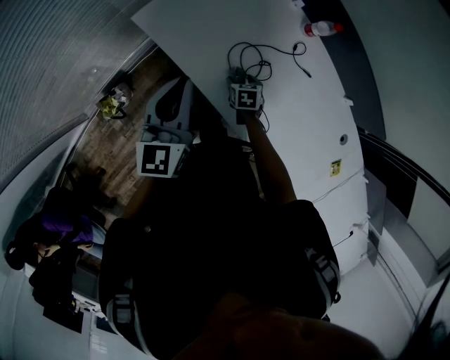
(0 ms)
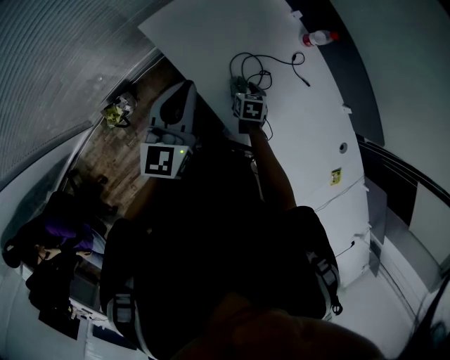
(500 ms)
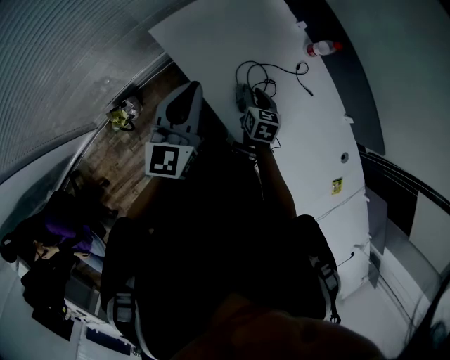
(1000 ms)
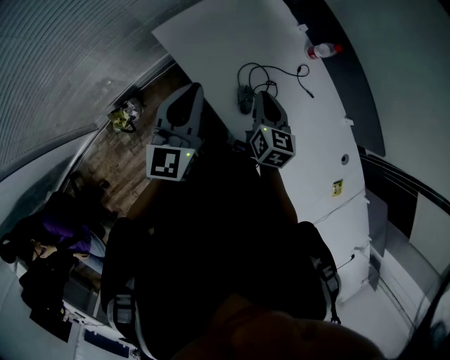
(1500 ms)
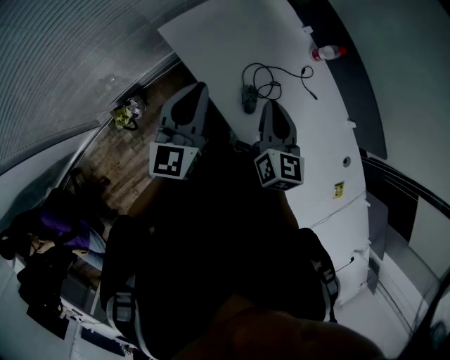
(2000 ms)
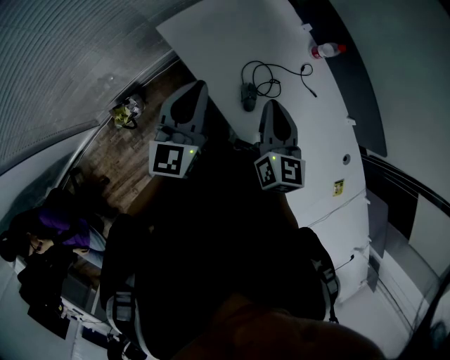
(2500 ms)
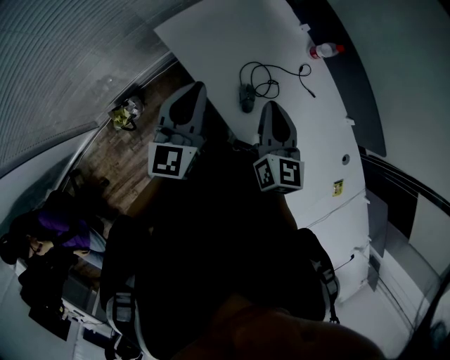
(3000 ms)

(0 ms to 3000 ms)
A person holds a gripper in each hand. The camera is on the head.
0 ms - 1500 ms: The right gripper heads upward, covering about 25 cm, points its fingers some 40 degrees further upward, and closes; the left gripper moves about 5 cm.
1500 ms - 3000 ms: The right gripper is displaced upward by about 10 cm.

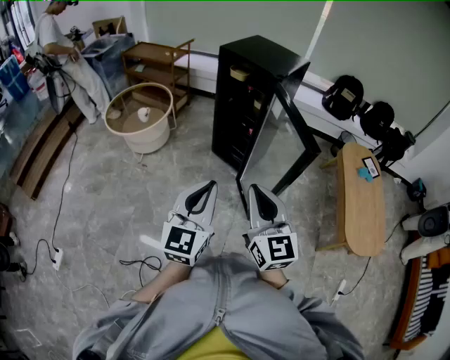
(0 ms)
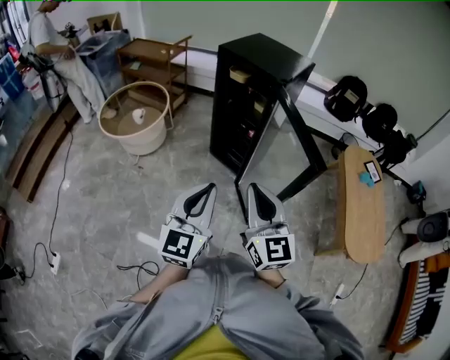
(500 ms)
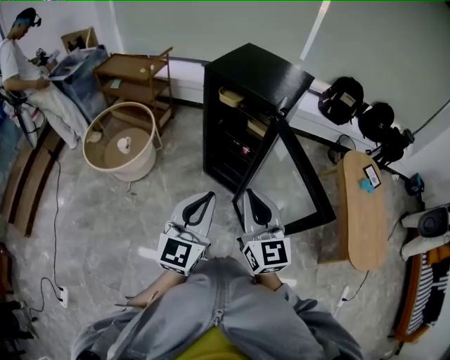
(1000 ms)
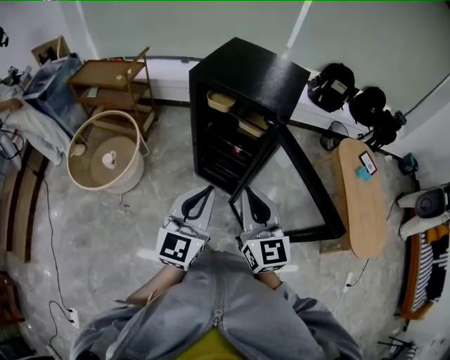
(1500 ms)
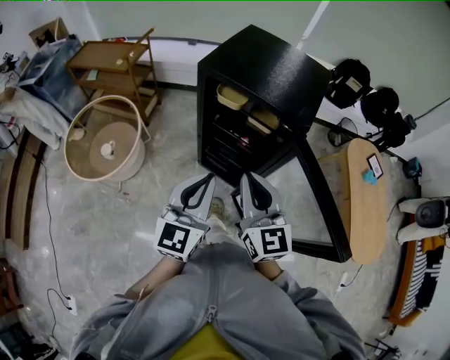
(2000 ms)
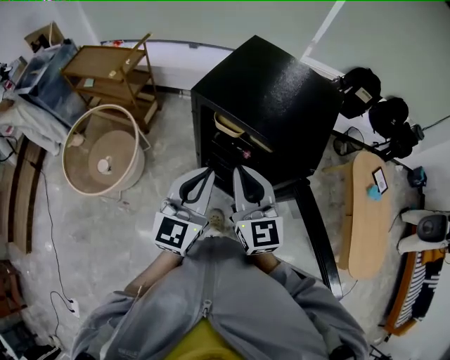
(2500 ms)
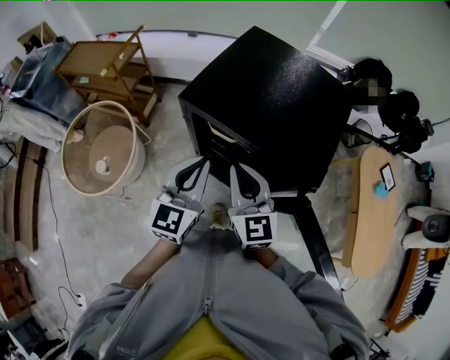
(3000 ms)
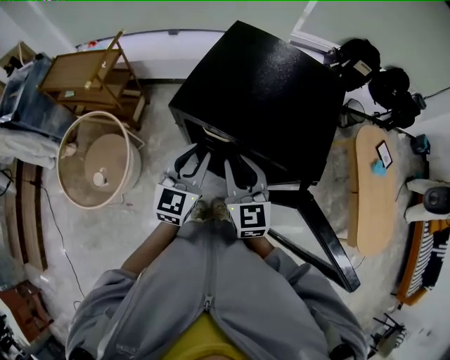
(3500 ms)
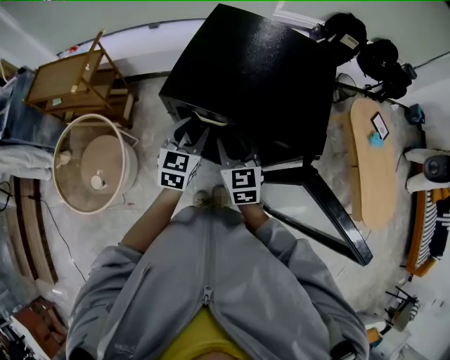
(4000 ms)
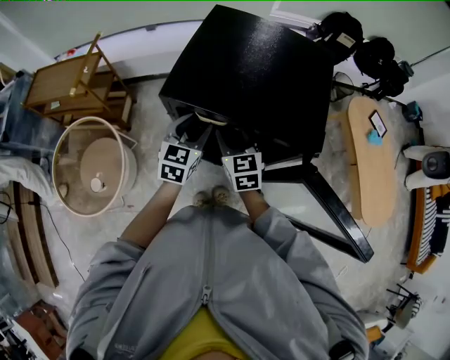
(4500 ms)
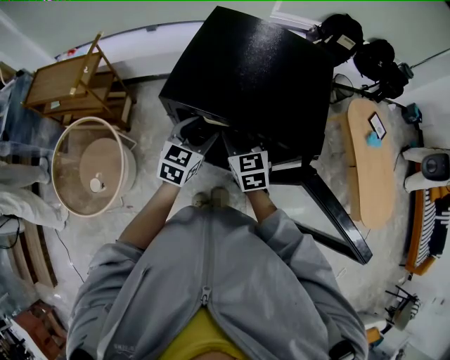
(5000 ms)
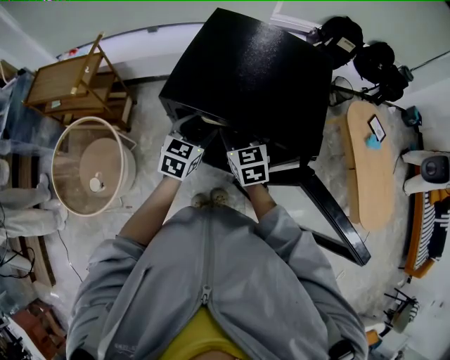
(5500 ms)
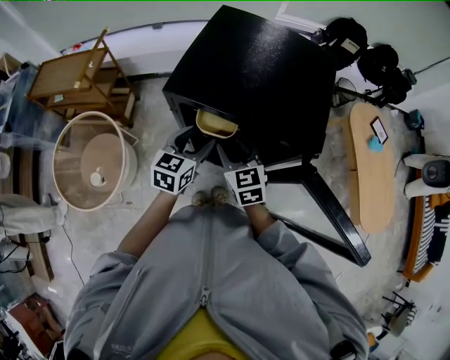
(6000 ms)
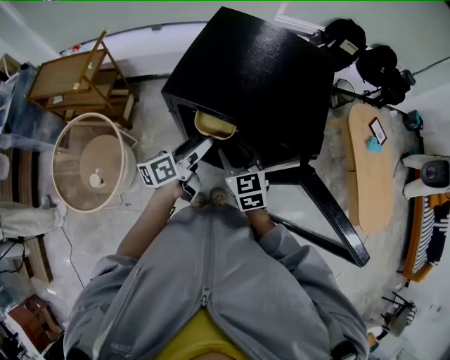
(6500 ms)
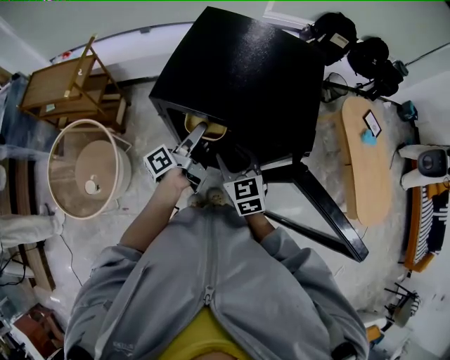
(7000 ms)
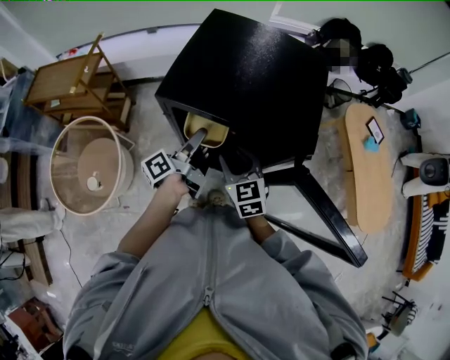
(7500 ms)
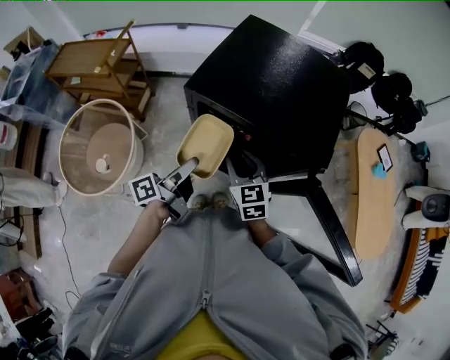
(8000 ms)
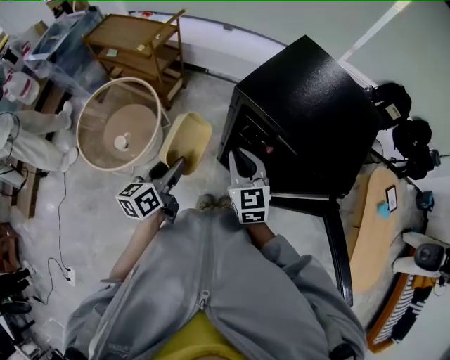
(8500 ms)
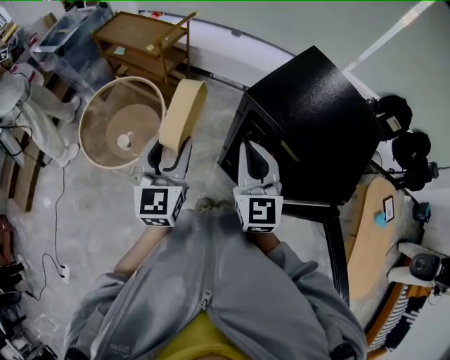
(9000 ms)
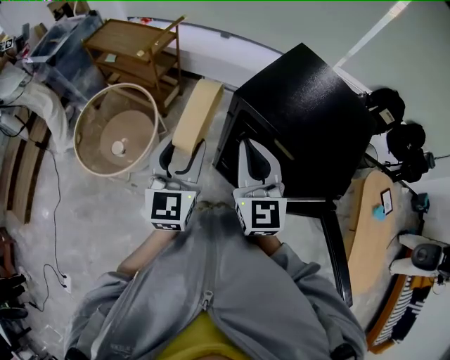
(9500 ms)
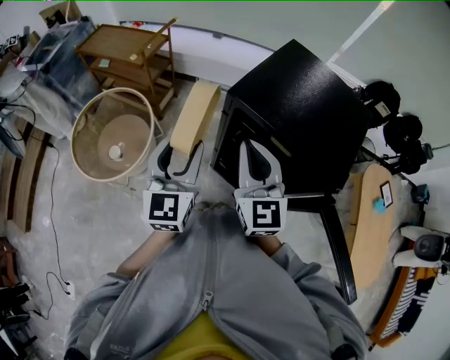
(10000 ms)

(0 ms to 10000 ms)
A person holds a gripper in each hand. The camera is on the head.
0 ms - 2000 ms: Both grippers are carried forward, approximately 40 cm.
2000 ms - 4000 ms: Both grippers travel together forward and downward, approximately 30 cm. The right gripper changes its angle by some 20 degrees, and opens its fingers, while the left gripper changes its angle by approximately 20 degrees, and opens.
4000 ms - 6000 ms: The grippers move only a little.
6000 ms - 8000 ms: The left gripper moves backward, some 10 cm, and rotates around the line of its fingers by approximately 70 degrees, counterclockwise from behind.
8000 ms - 10000 ms: Both grippers move upward, some 15 cm. The right gripper turns by some 30 degrees, and closes its fingers, while the left gripper rotates around the line of its fingers by some 80 degrees, clockwise from behind.

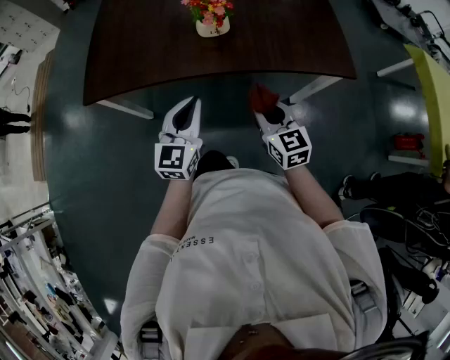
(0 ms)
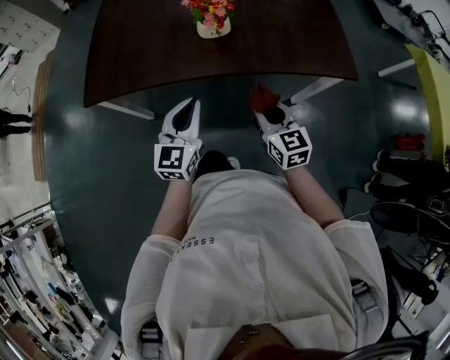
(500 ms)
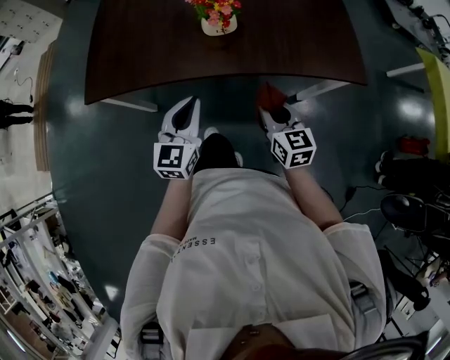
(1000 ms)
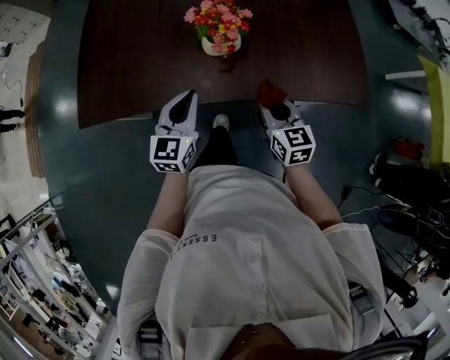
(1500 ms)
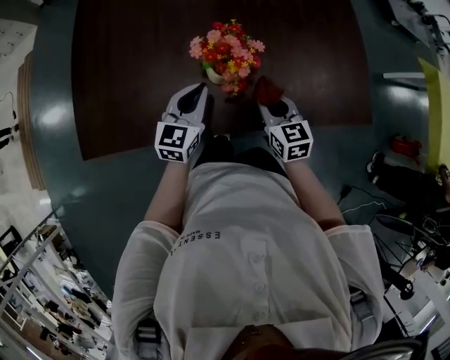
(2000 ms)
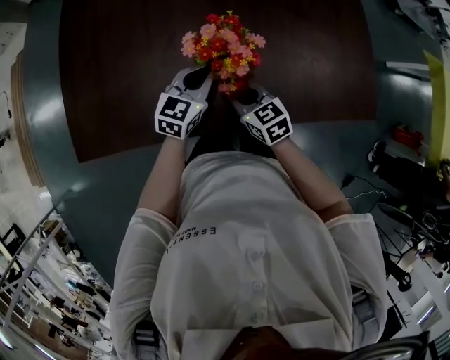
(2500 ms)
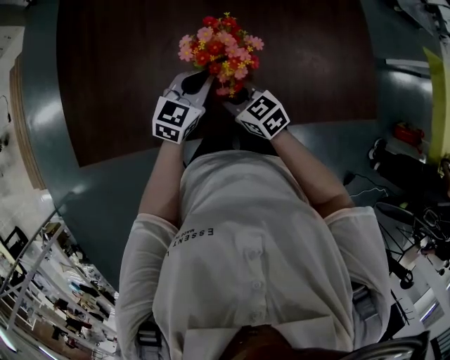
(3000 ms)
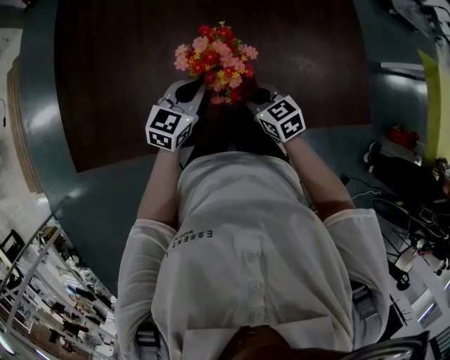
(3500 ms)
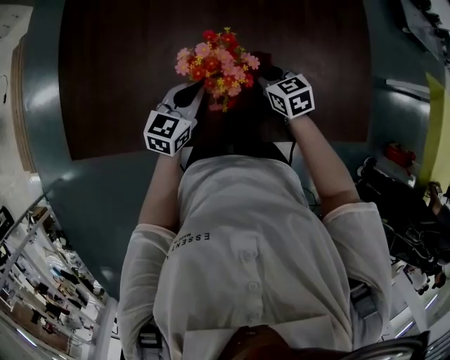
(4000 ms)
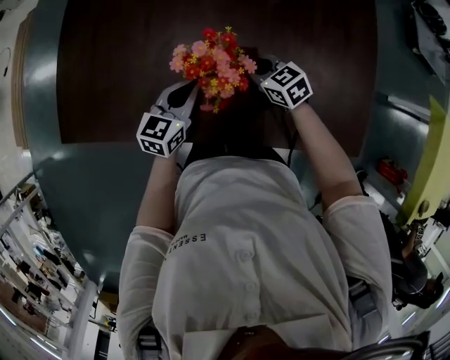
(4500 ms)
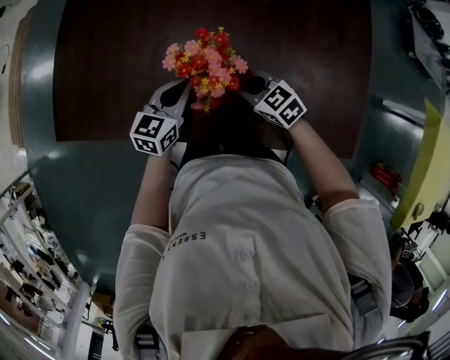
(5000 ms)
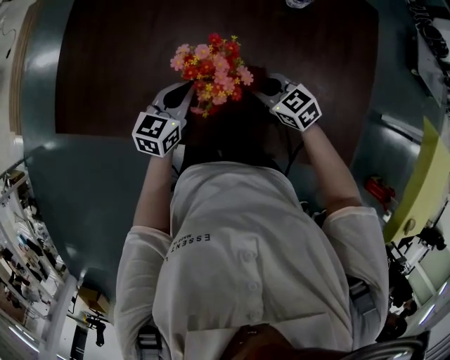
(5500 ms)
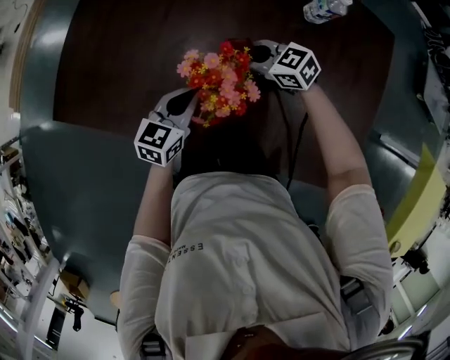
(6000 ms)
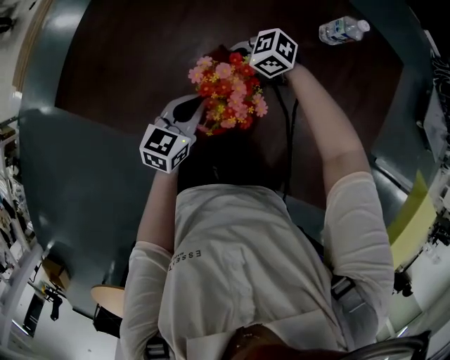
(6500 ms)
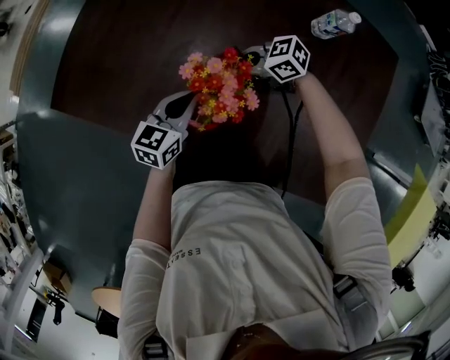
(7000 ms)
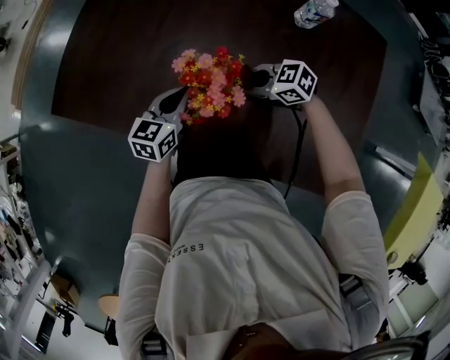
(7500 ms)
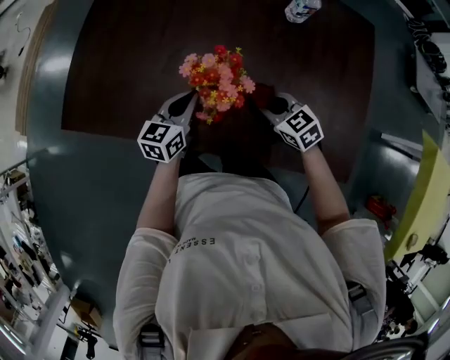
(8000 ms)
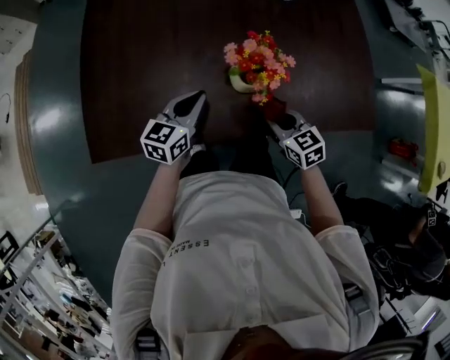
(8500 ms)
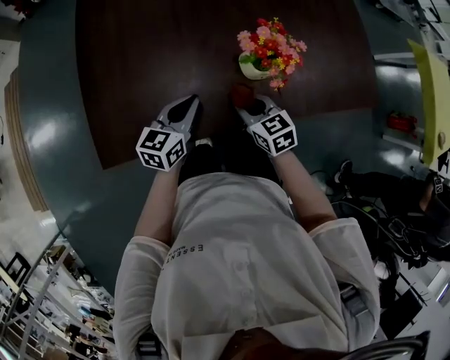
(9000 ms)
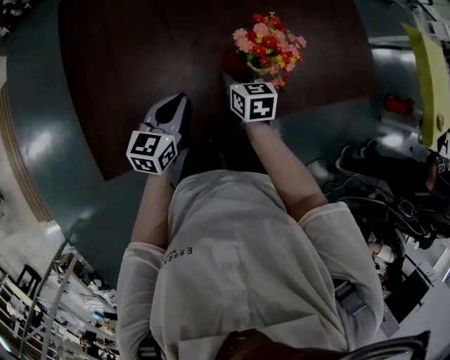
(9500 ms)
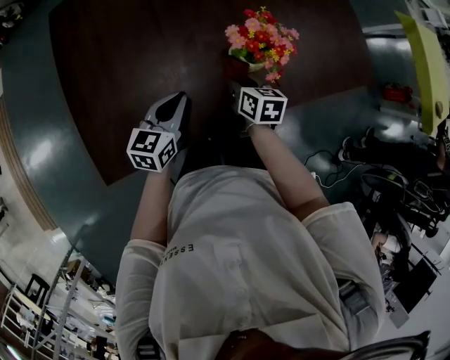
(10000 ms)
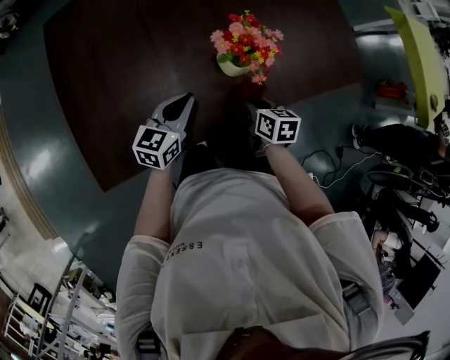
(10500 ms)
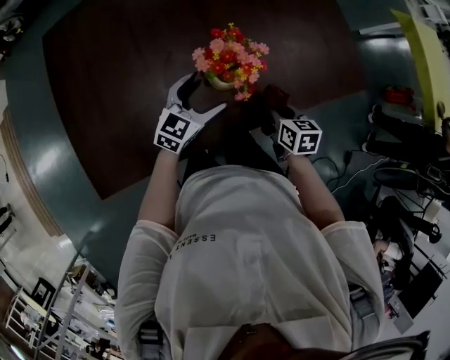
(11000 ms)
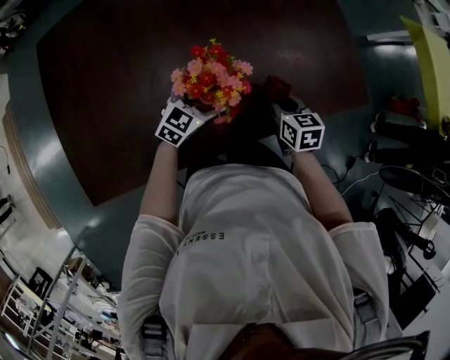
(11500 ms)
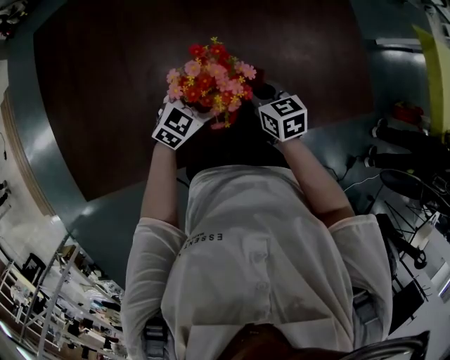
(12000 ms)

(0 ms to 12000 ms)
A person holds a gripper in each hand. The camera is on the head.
0 ms - 2000 ms: The grippers both shift forward by about 25 cm.
2000 ms - 4000 ms: The left gripper moves approximately 5 cm. Meanwhile the right gripper heads forward and downward, covering approximately 15 cm, reaches some 10 cm to the left, then returns, and changes its angle by about 20 degrees.
4000 ms - 6000 ms: The right gripper ends up about 10 cm from where it was, and swivels some 50 degrees.
6000 ms - 8000 ms: The right gripper changes place by approximately 15 cm, and turns by about 20 degrees.
8000 ms - 10000 ms: The right gripper ends up some 20 cm from where it was, and turns by some 70 degrees, while the left gripper shifts by roughly 15 cm, and swivels some 30 degrees.
10000 ms - 12000 ms: The left gripper goes roughly 25 cm to the right and forward, rotates about 30 degrees, and opens its fingers, while the right gripper shifts some 15 cm to the right and forward, and changes its angle by approximately 30 degrees.

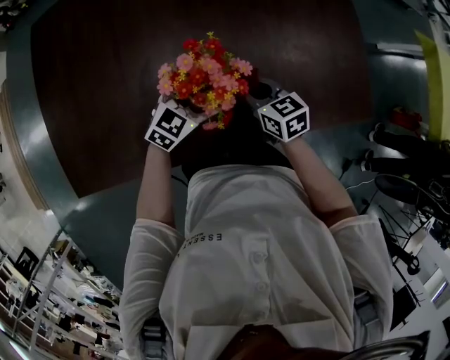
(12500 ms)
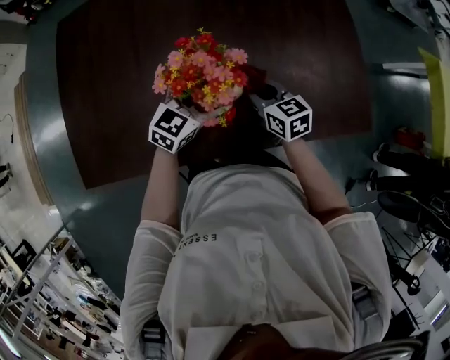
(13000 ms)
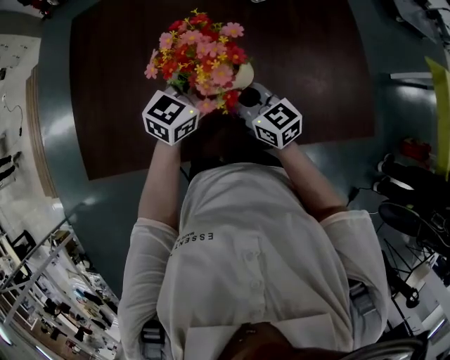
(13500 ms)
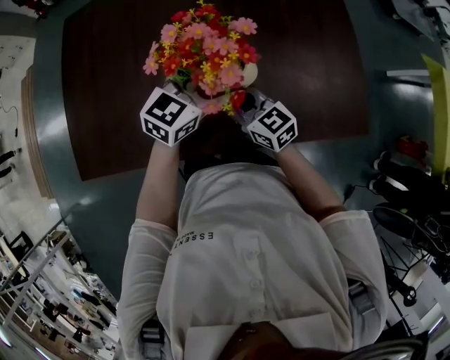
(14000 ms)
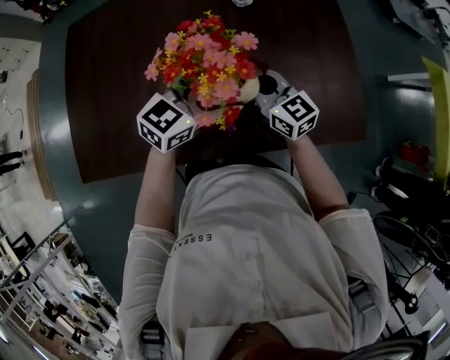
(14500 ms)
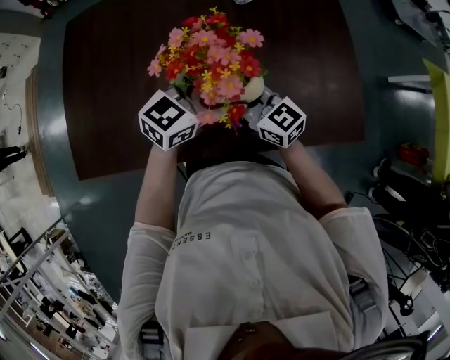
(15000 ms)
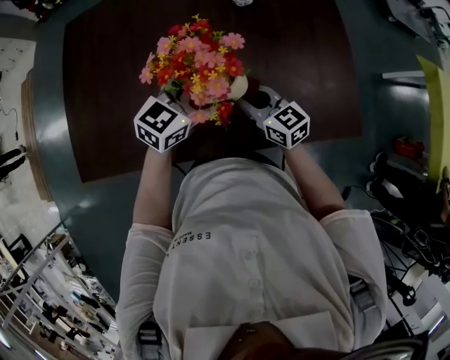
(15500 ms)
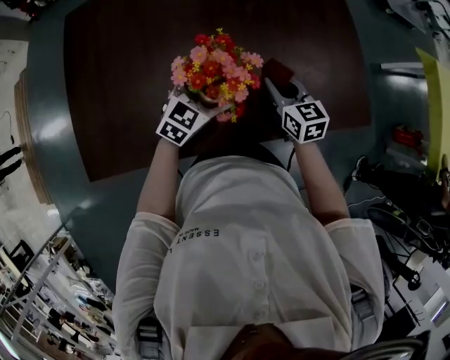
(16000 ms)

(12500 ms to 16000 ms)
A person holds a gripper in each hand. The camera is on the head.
12500 ms - 14500 ms: Both grippers travel together upward, roughly 15 cm. The right gripper turns by about 30 degrees.
14500 ms - 16000 ms: The right gripper goes about 5 cm downward, and turns by approximately 30 degrees, while the left gripper heads downward and to the left, covering approximately 15 cm.
